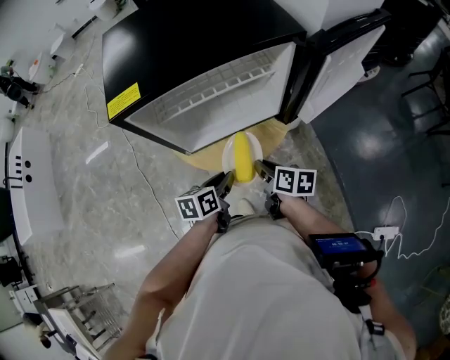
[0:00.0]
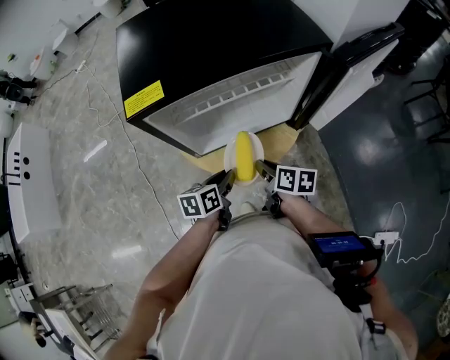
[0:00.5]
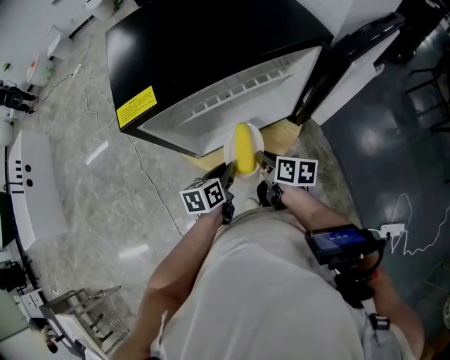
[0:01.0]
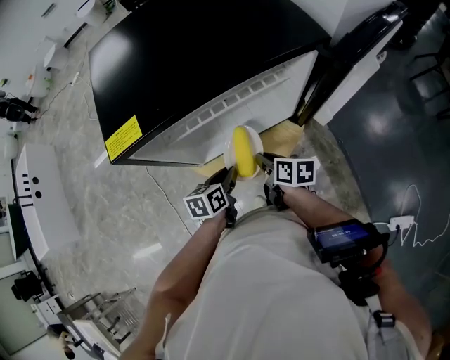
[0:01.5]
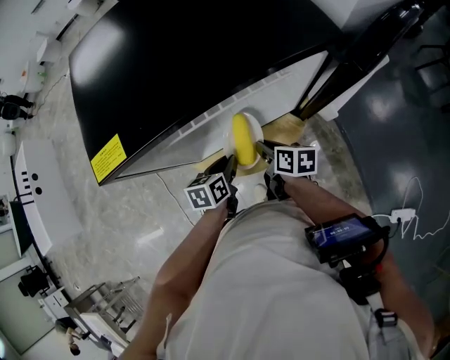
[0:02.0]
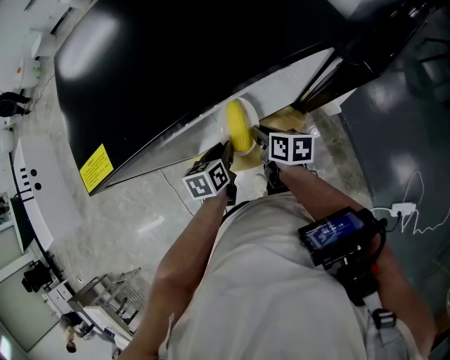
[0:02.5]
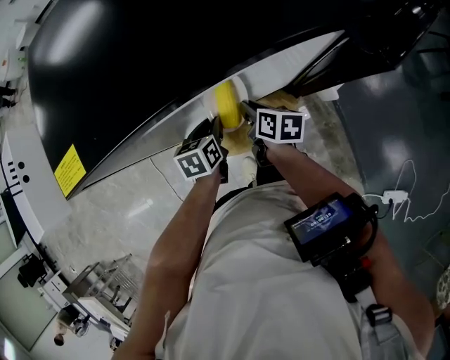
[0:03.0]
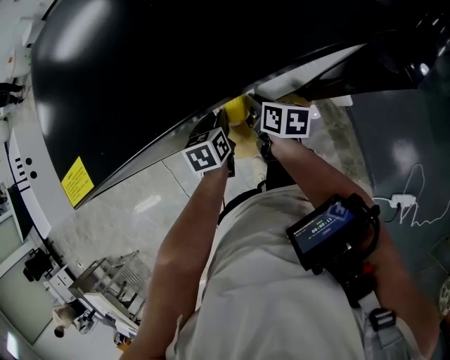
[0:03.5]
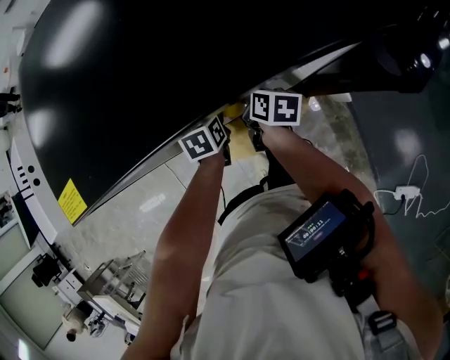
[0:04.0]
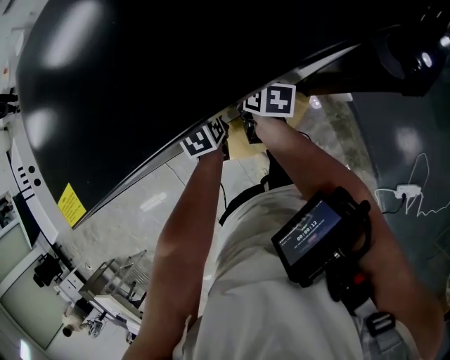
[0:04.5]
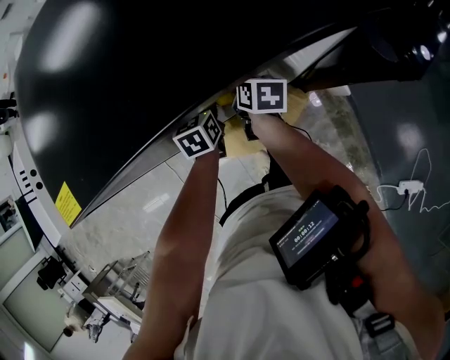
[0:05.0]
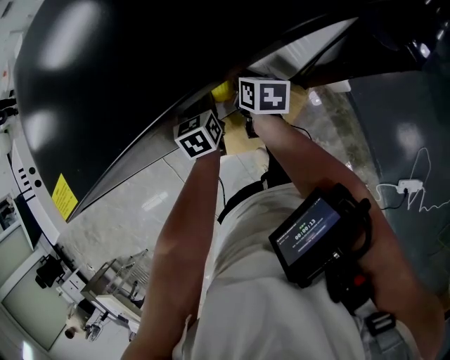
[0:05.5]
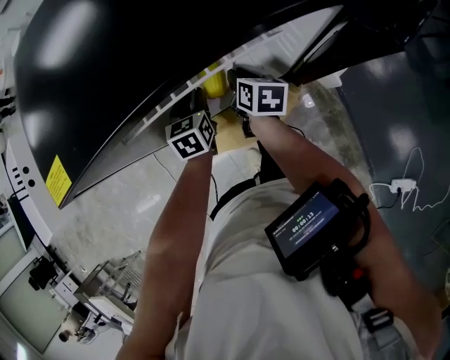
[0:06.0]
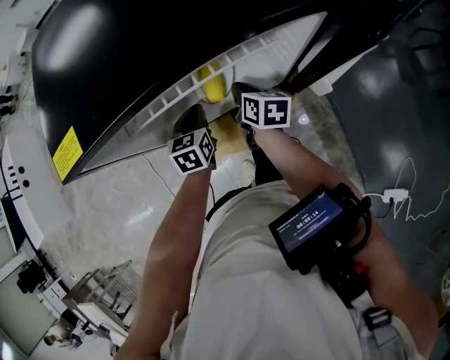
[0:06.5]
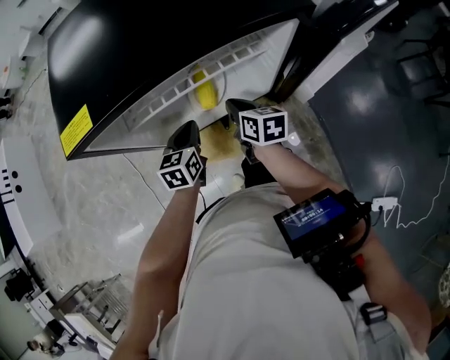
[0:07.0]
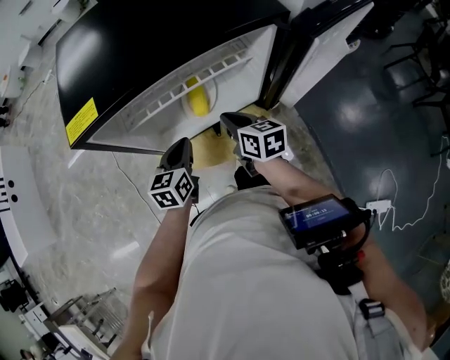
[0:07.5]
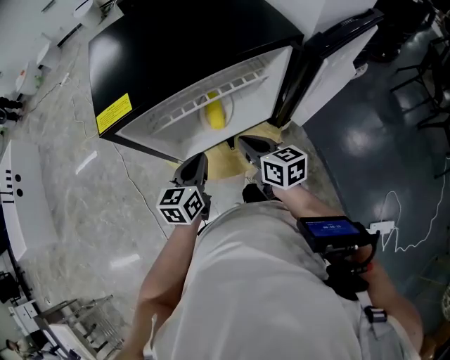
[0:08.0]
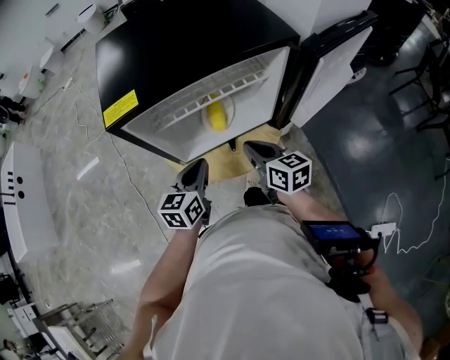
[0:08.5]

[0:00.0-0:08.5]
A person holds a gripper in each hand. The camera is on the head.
0:00.0 to 0:02.0: Both grippers move forward and downward, roughly 10 cm.
0:02.0 to 0:04.0: The grippers both shift forward by approximately 10 cm.
0:04.0 to 0:06.5: The left gripper changes place by some 5 cm.
0:06.5 to 0:08.5: Both grippers travel together backward and upward, approximately 20 cm. The left gripper rotates about 20 degrees; the right gripper rotates some 20 degrees.

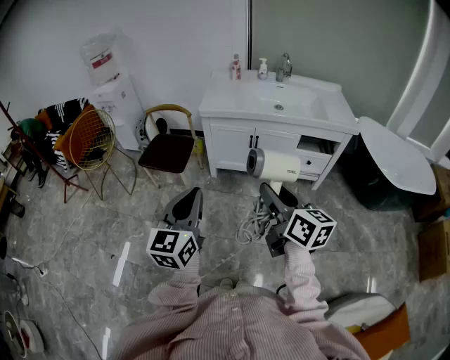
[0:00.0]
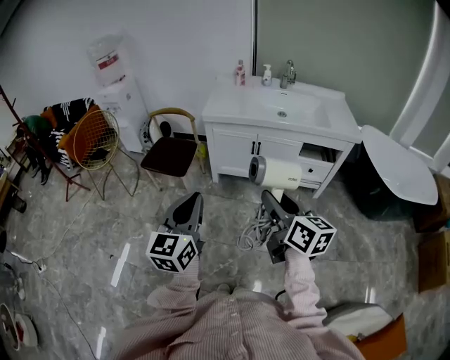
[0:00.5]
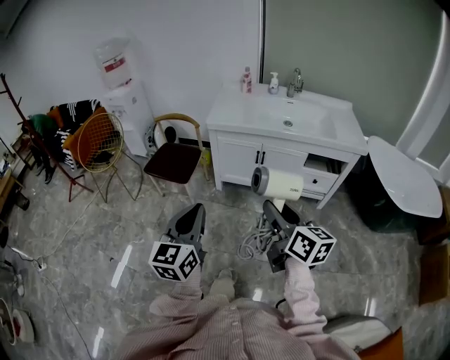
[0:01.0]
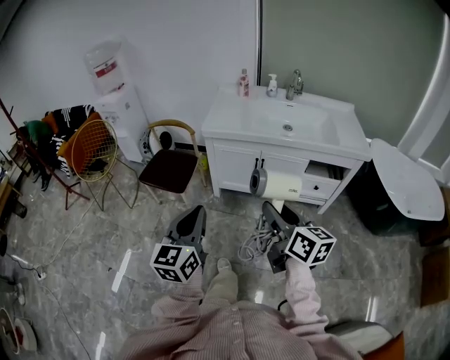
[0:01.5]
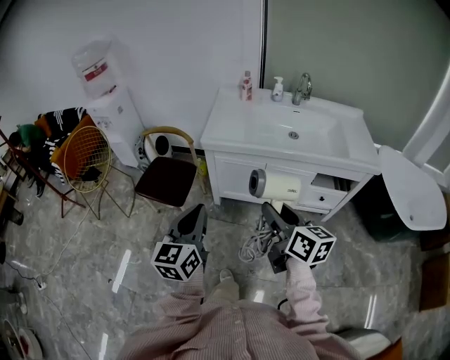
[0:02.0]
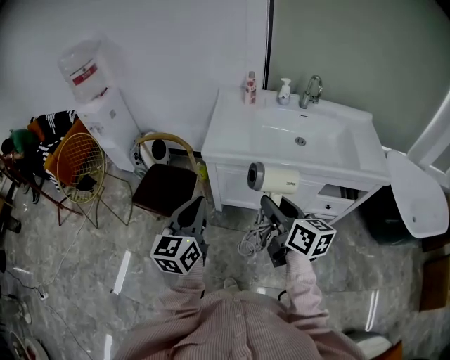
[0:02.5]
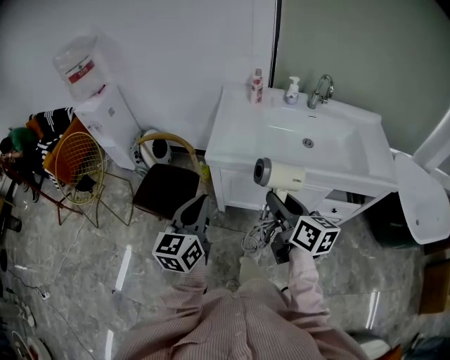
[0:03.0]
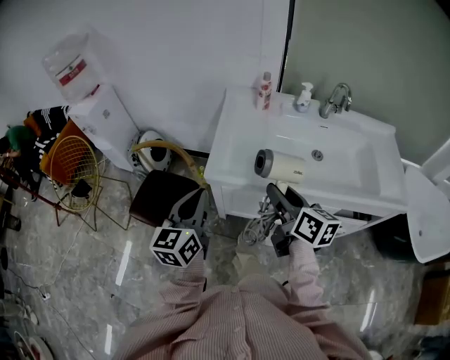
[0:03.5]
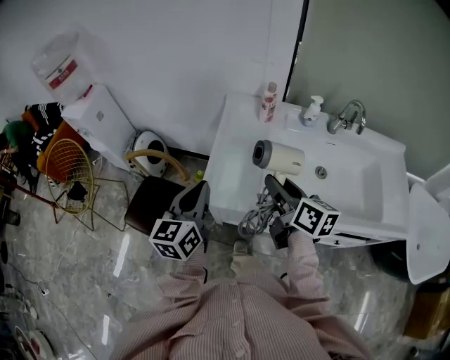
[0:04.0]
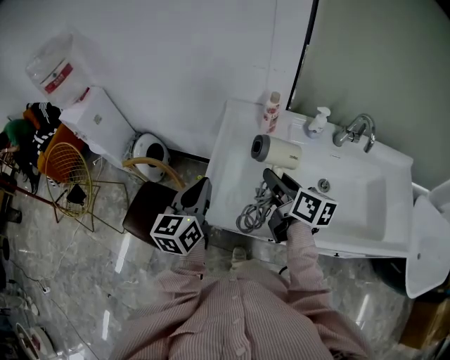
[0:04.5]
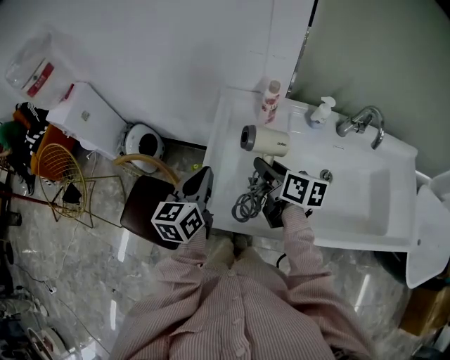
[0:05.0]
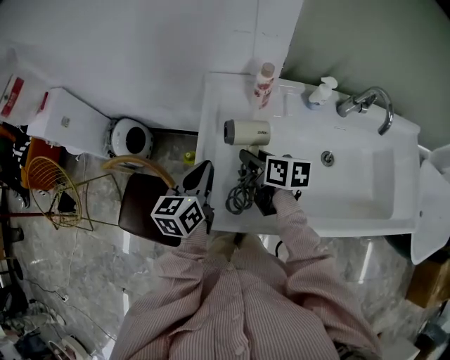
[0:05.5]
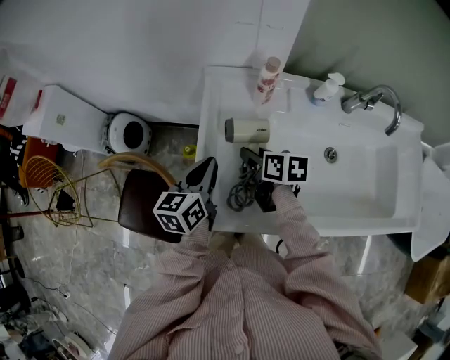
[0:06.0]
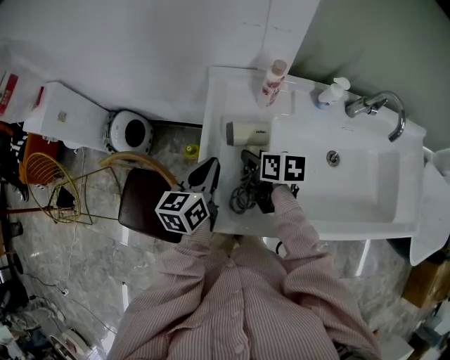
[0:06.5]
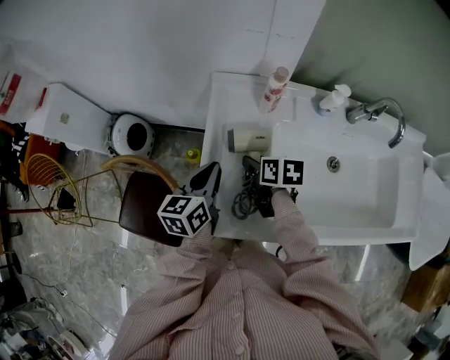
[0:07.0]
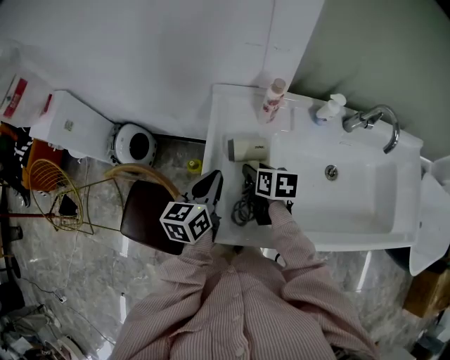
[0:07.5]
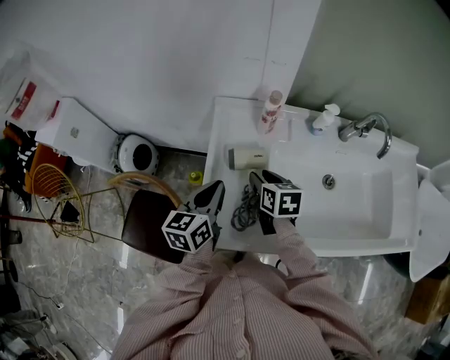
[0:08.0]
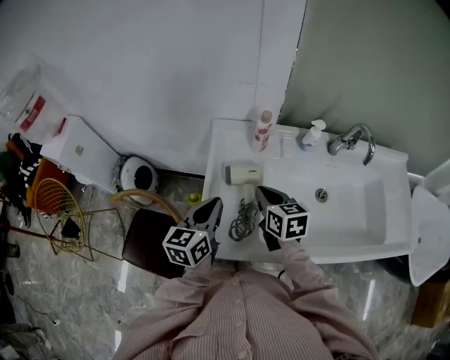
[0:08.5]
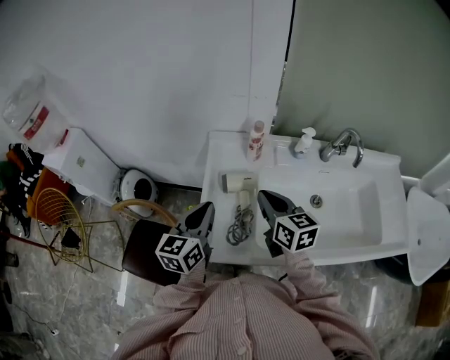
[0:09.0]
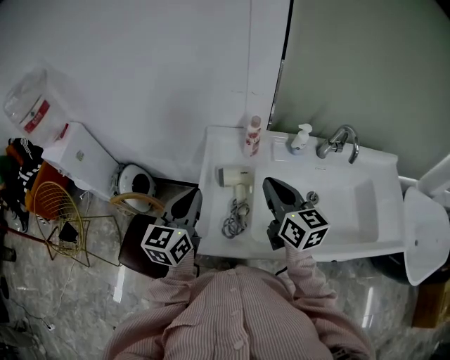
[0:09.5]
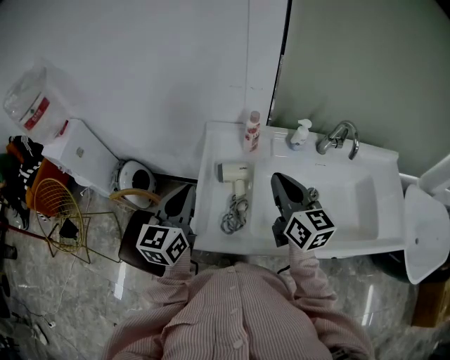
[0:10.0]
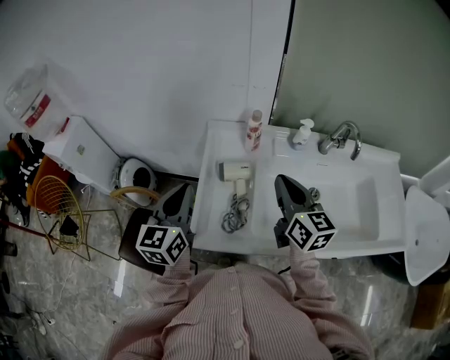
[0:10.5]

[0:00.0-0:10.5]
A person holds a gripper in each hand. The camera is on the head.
0:00.0 to 0:02.0: Both grippers move forward, some 25 cm.
0:02.0 to 0:04.0: Both grippers are carried forward, some 50 cm.
0:04.0 to 0:06.5: The grippers both shift forward and downward by approximately 25 cm. The right gripper points its fingers some 30 degrees further downward. Meanwhile the left gripper rotates some 20 degrees.
0:06.5 to 0:08.5: The right gripper is displaced upward by approximately 10 cm, changes its angle by some 30 degrees, and closes. Meanwhile the left gripper moves upward, approximately 5 cm.
0:08.5 to 0:10.5: The left gripper shifts approximately 10 cm upward and to the left. The right gripper travels upward and to the right by about 15 cm, and changes its angle by about 20 degrees.

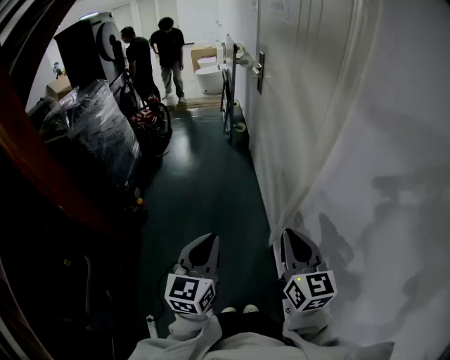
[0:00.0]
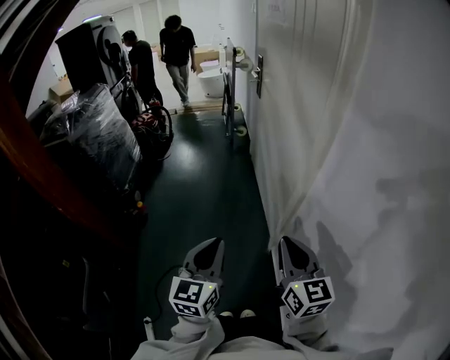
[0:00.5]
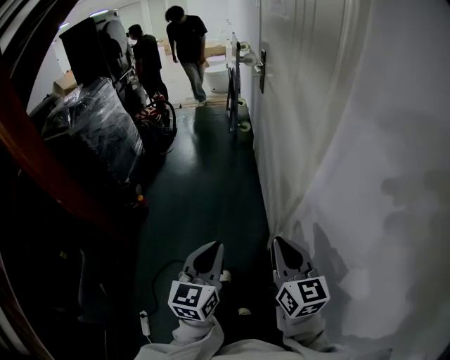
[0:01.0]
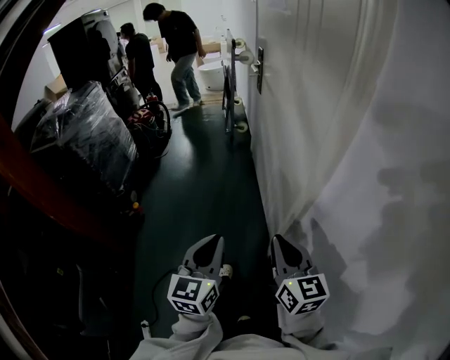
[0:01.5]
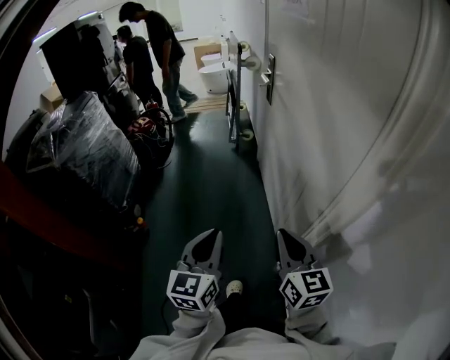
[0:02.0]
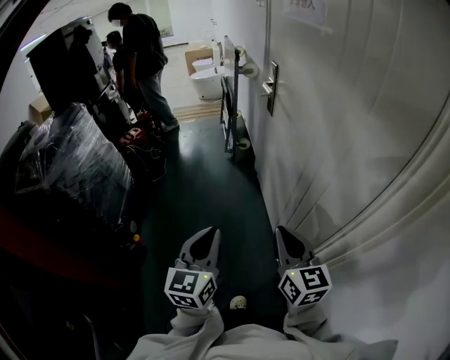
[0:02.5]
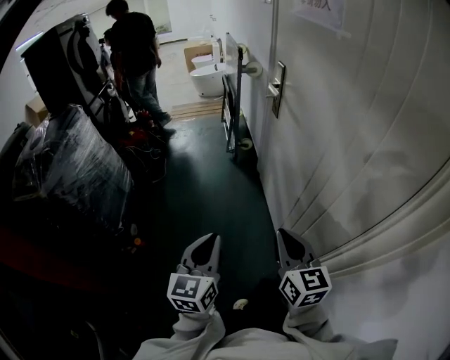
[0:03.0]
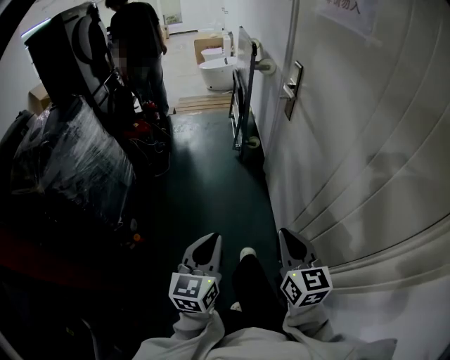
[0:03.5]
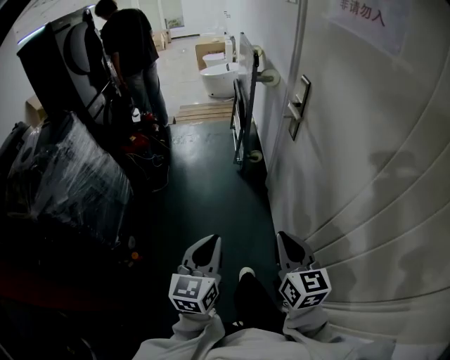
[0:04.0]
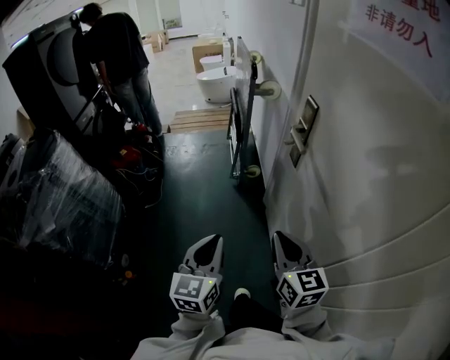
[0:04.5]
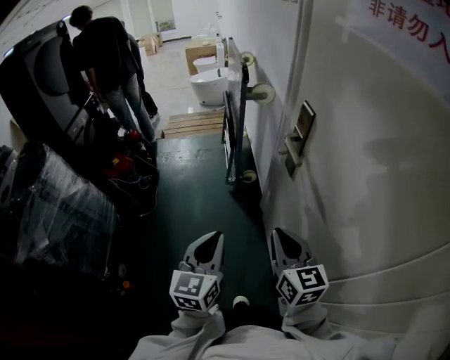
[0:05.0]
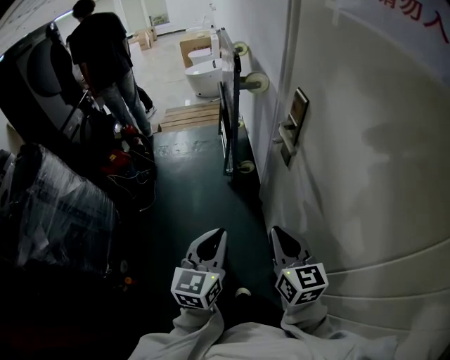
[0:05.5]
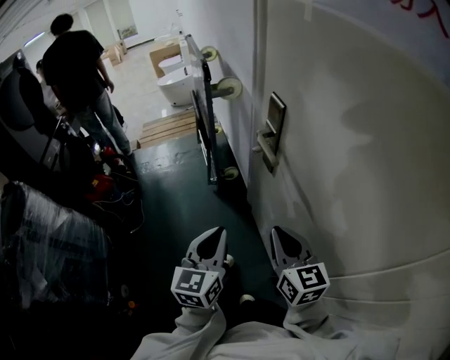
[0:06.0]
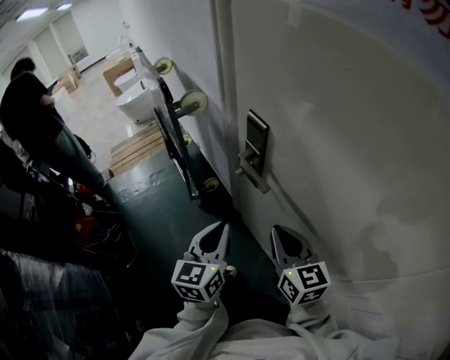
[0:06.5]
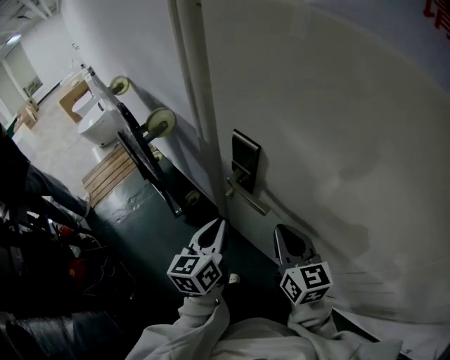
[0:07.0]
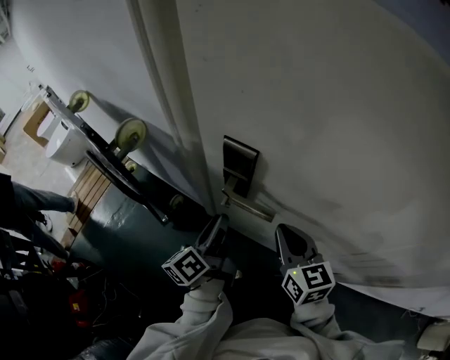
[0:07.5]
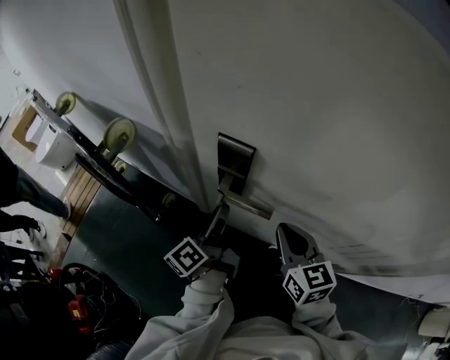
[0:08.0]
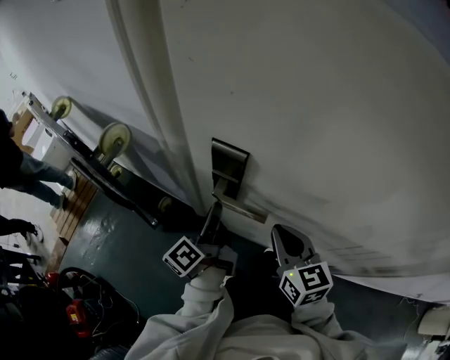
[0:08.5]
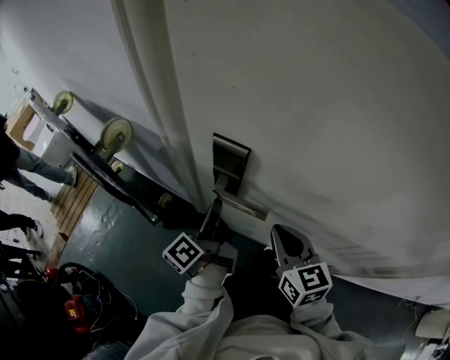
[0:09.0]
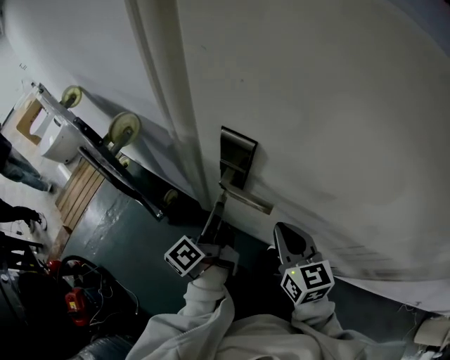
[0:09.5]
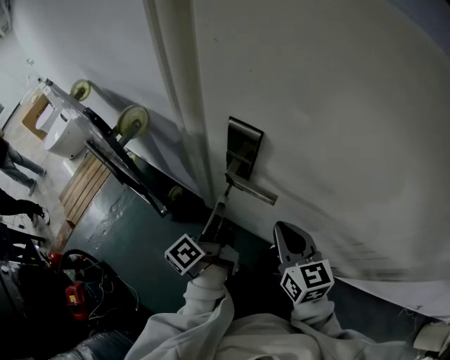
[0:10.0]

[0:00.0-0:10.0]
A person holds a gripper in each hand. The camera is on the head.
0:00.0 to 0:02.0: The two grippers go about 25 cm forward.
0:02.0 to 0:04.0: The two grippers go some 35 cm forward.
0:04.0 to 0:06.0: Both grippers move forward, some 30 cm.
0:06.0 to 0:08.0: The right gripper changes place by some 15 cm, and turns by approximately 50 degrees; the left gripper ends up about 30 cm from where it was, changes its angle by about 70 degrees, and opens its fingers.
0:08.0 to 0:10.0: The left gripper closes.
